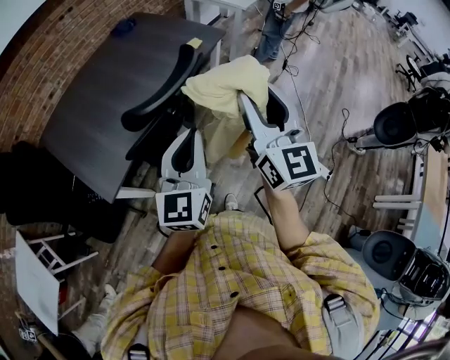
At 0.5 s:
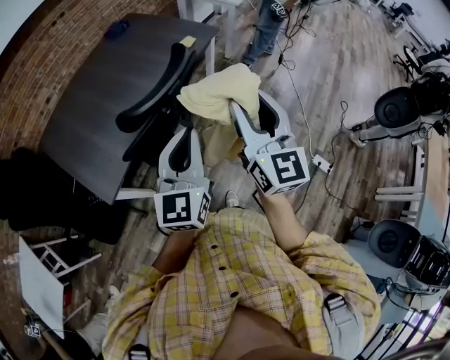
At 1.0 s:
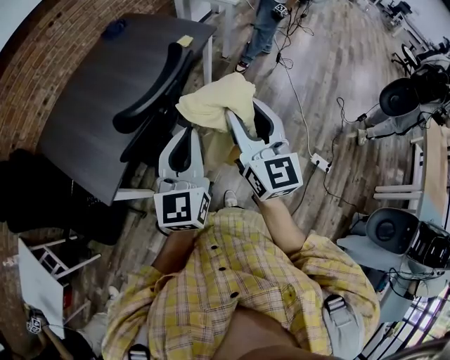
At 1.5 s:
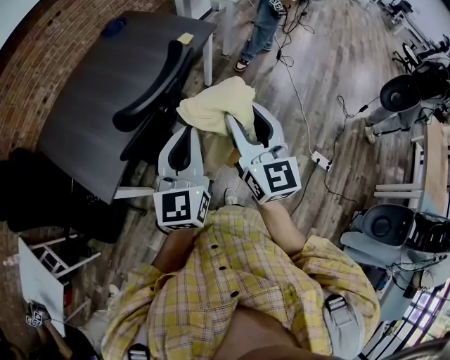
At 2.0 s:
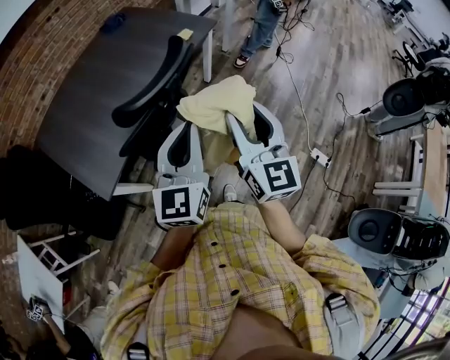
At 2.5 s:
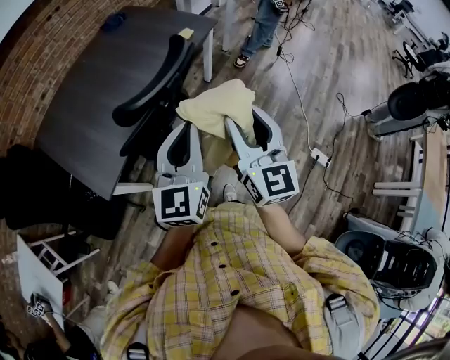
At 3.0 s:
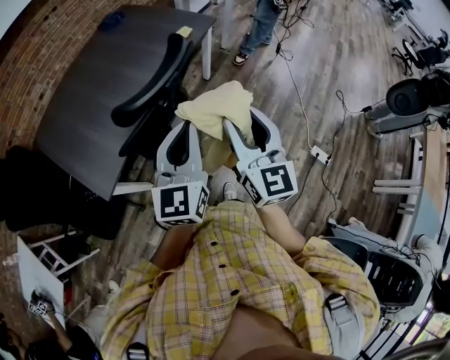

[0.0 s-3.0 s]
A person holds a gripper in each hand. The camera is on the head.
0.0 to 1.5 s: The right gripper is displaced downward by about 5 cm.
1.5 to 3.0 s: There are only small adjustments of the grippers.

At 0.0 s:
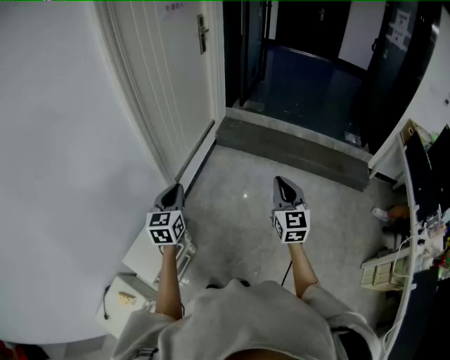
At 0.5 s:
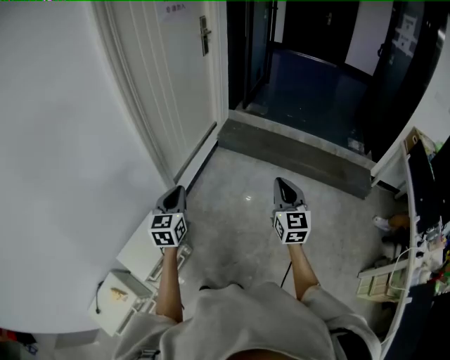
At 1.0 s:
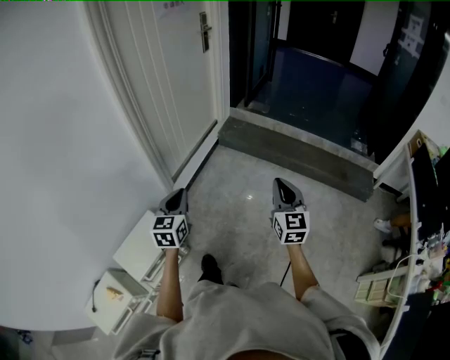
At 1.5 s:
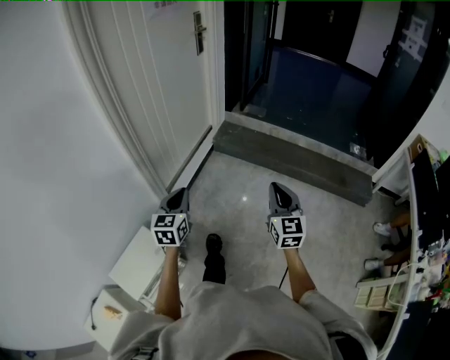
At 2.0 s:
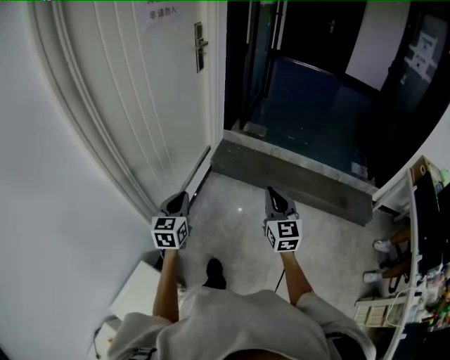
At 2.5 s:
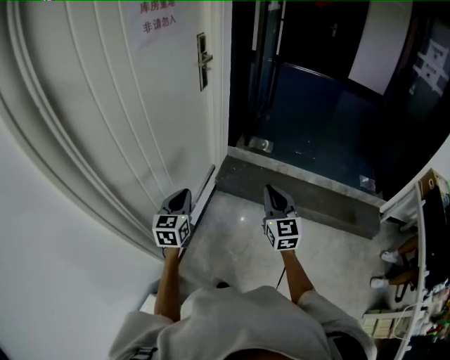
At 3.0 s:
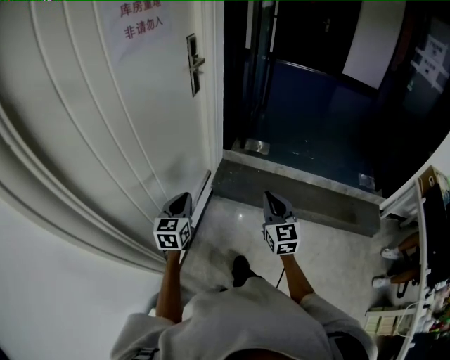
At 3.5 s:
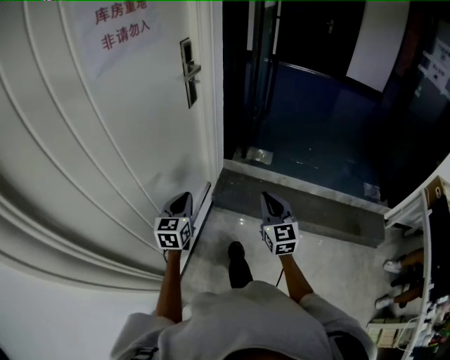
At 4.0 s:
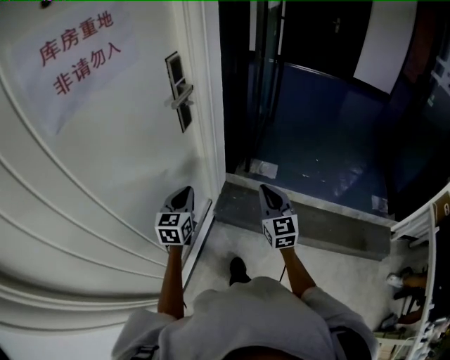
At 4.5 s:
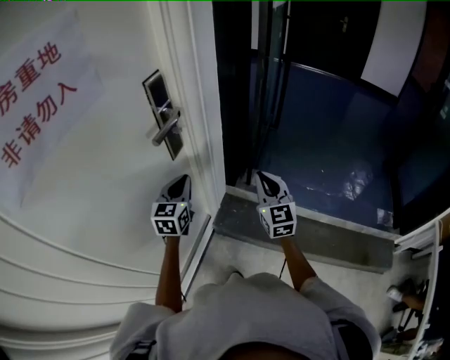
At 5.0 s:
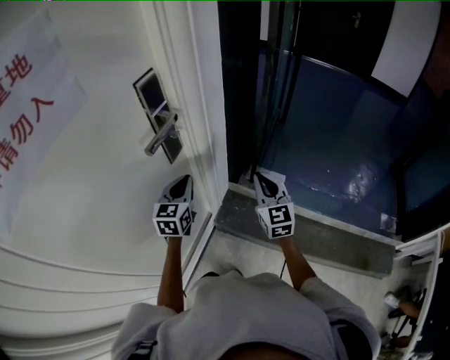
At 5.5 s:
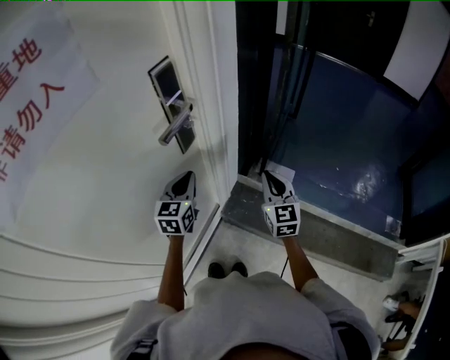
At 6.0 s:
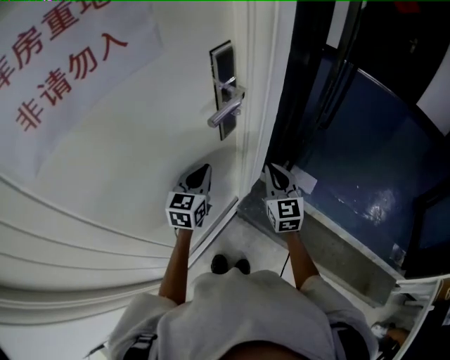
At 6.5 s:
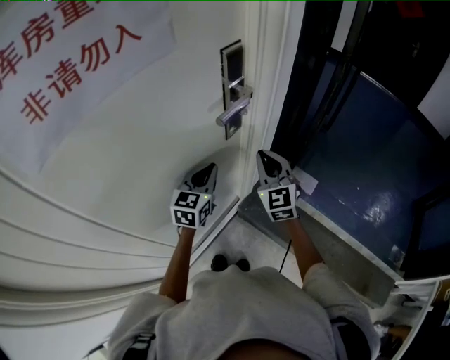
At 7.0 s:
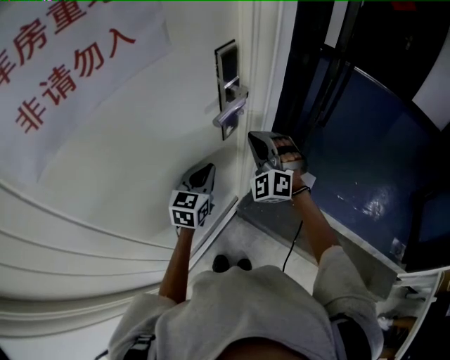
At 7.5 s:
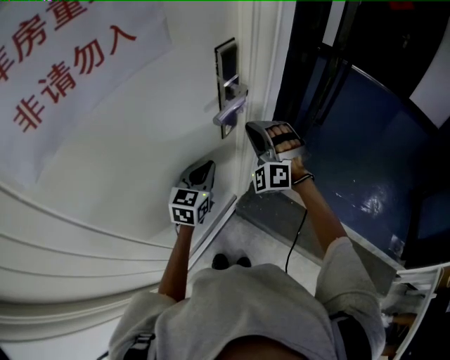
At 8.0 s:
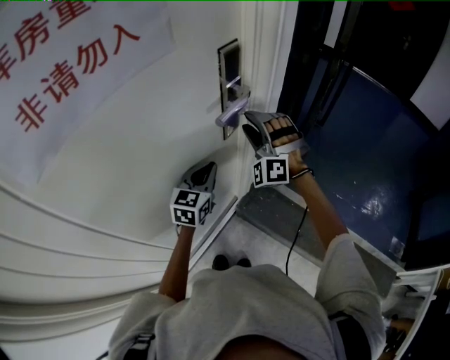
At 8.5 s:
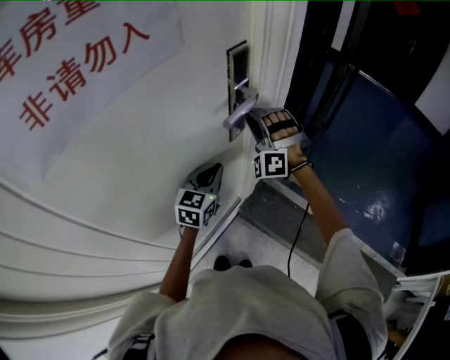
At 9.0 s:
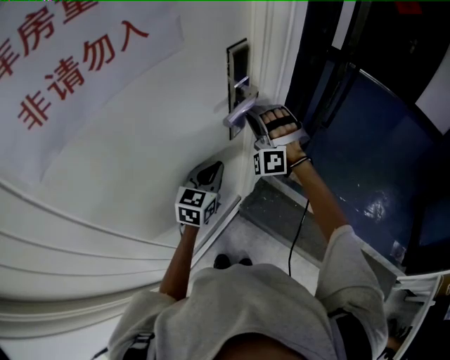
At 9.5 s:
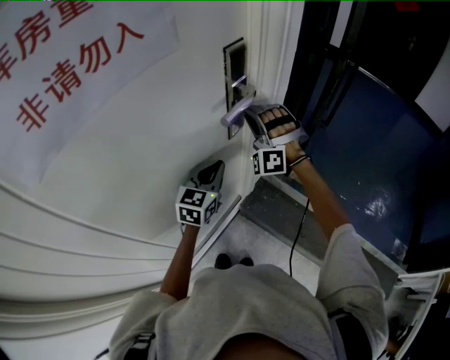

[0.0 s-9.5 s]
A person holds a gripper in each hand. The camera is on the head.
0.0 to 2.0 s: The two grippers go about 35 cm forward.
2.0 to 4.0 s: Both grippers are carried forward, roughly 60 cm.
4.0 to 5.5 s: The two grippers go about 20 cm forward.
5.5 to 7.5 s: The left gripper goes about 5 cm to the left; the right gripper is displaced to the left, forward and upward by roughly 20 cm, and rotates around the line of its fingers by about 80 degrees, counterclockwise from behind.
7.5 to 9.5 s: The right gripper changes place by roughly 5 cm, and opens, then closes once more.

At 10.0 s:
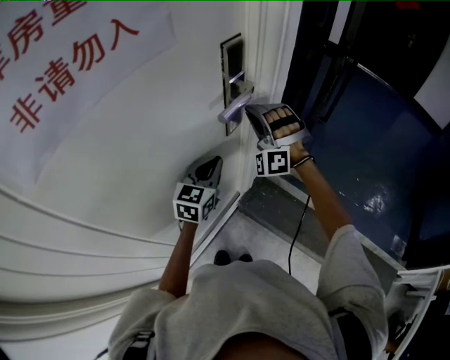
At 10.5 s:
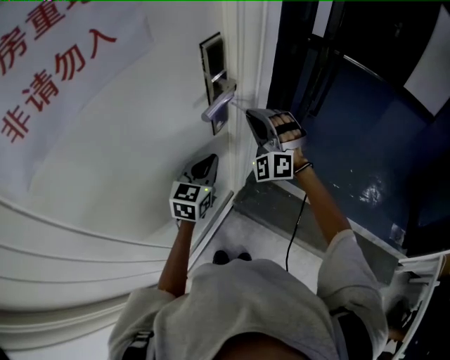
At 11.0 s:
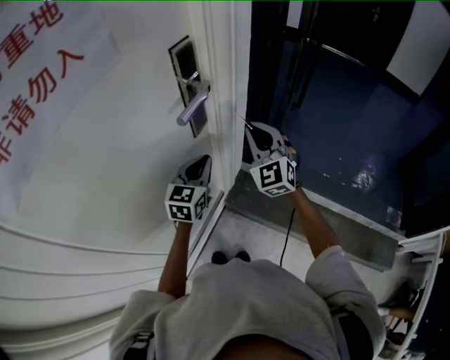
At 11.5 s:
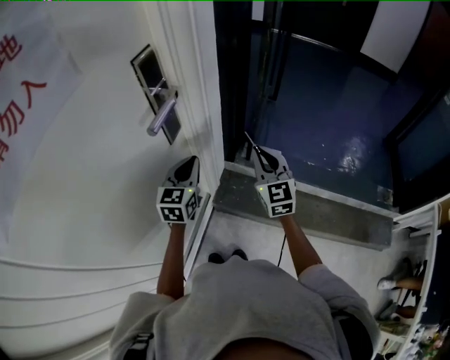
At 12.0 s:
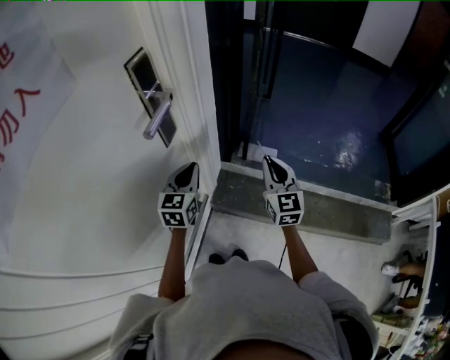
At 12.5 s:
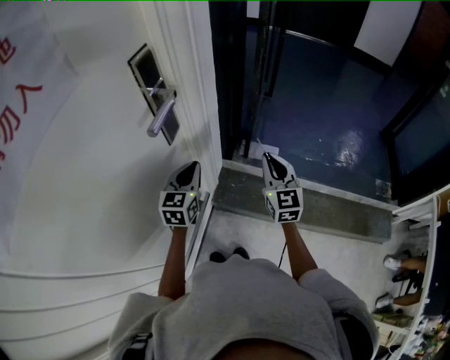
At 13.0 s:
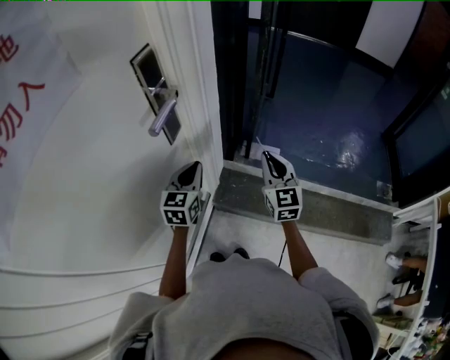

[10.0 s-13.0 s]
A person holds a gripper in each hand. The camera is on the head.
10.0 to 11.5 s: The left gripper moves to the right, approximately 10 cm. Meanwhile the right gripper shifts approximately 25 cm to the right and backward, and twists some 80 degrees clockwise, seen from behind.
11.5 to 13.0 s: The grippers make only small movements.

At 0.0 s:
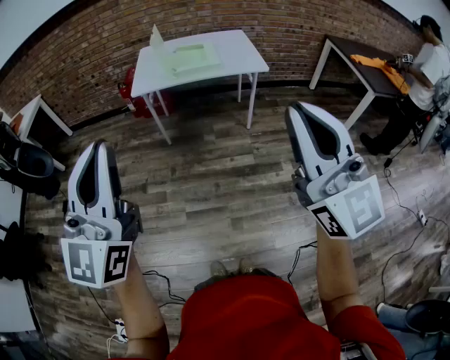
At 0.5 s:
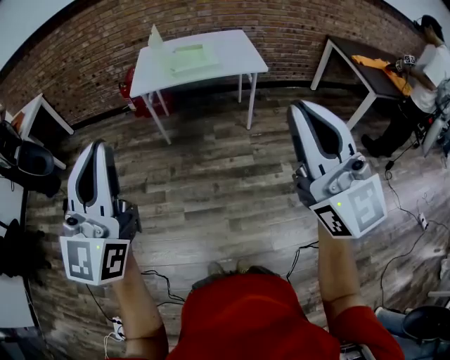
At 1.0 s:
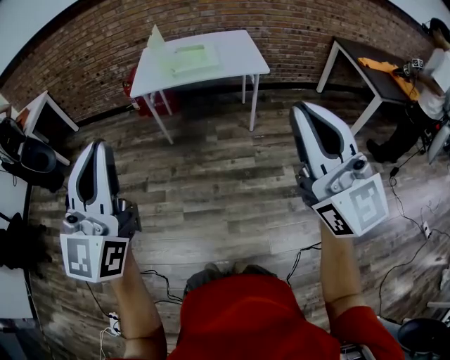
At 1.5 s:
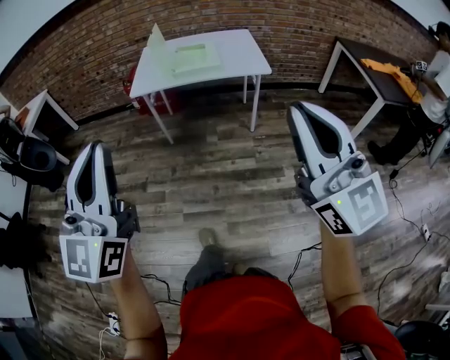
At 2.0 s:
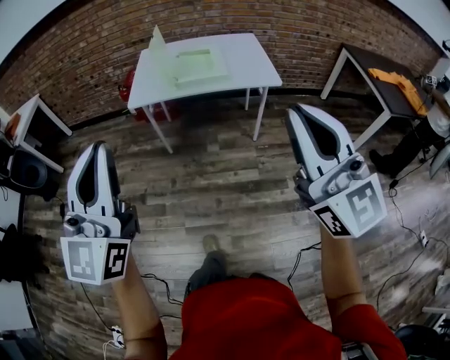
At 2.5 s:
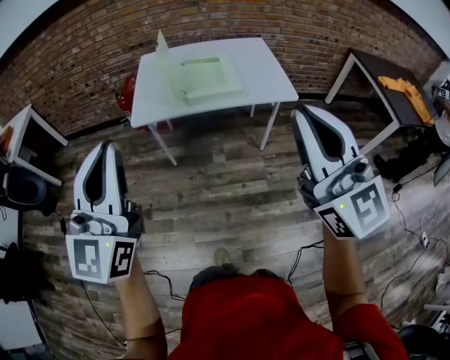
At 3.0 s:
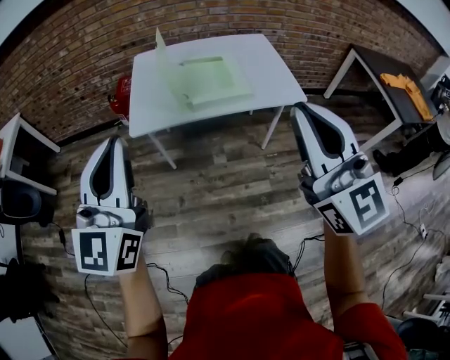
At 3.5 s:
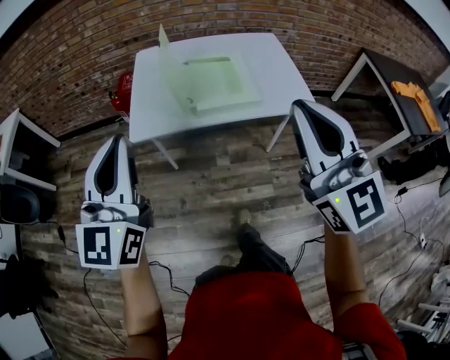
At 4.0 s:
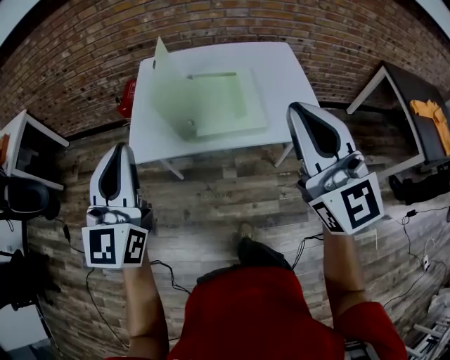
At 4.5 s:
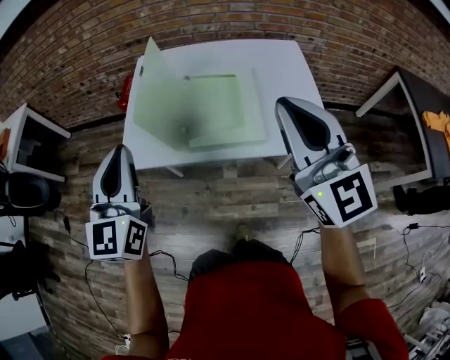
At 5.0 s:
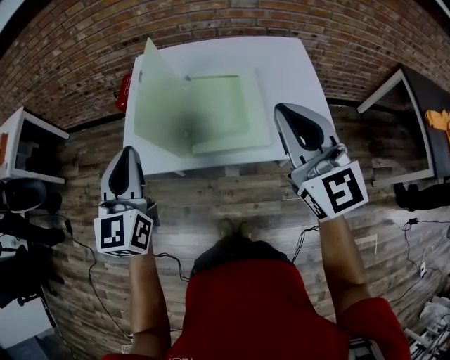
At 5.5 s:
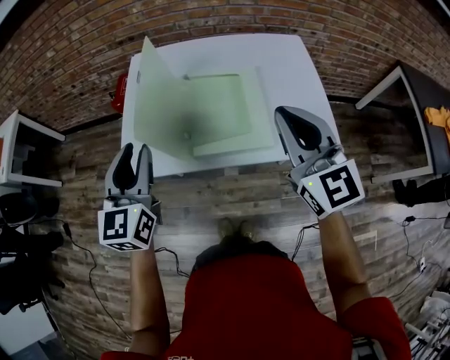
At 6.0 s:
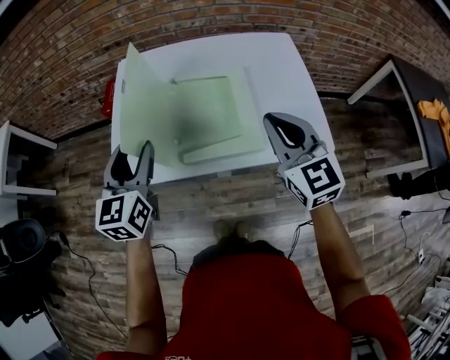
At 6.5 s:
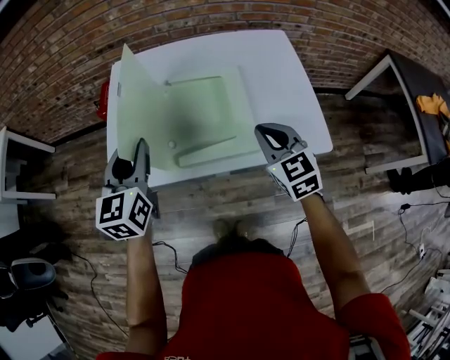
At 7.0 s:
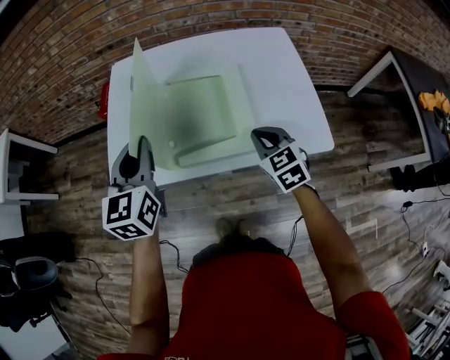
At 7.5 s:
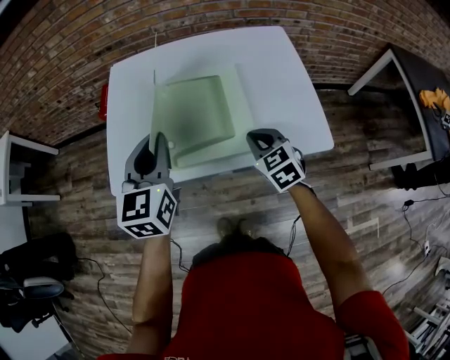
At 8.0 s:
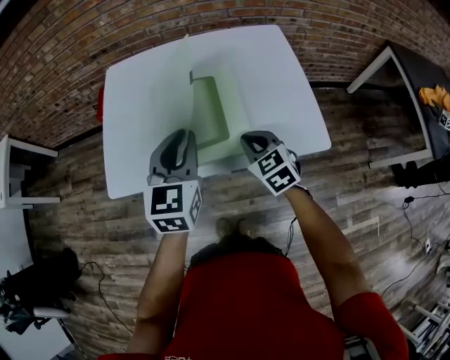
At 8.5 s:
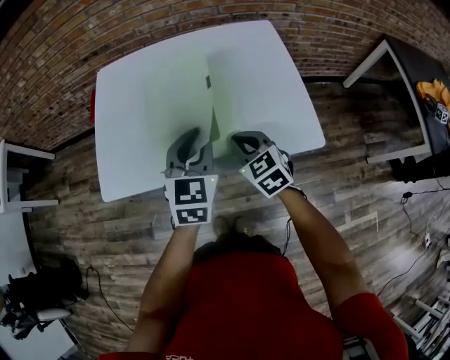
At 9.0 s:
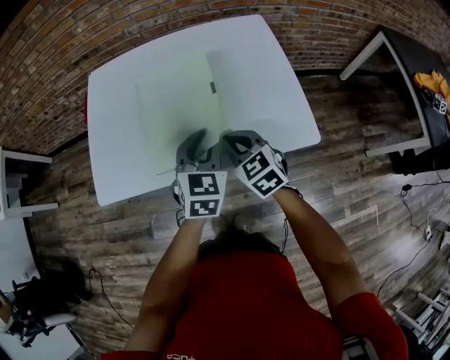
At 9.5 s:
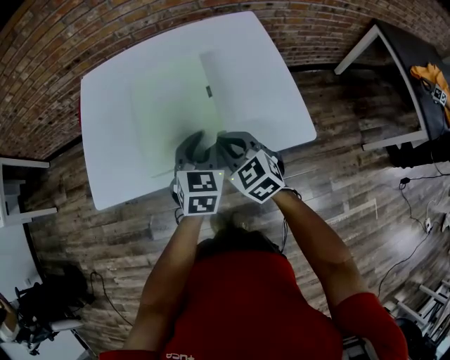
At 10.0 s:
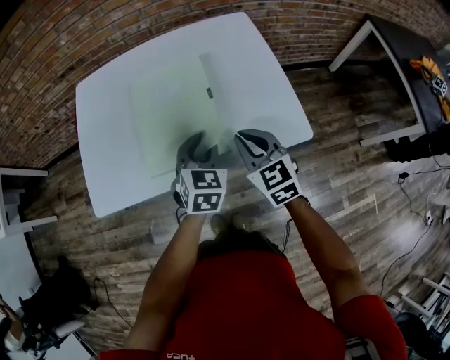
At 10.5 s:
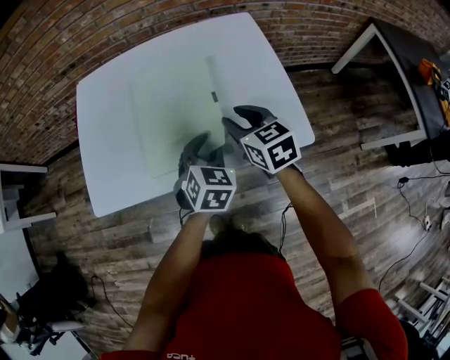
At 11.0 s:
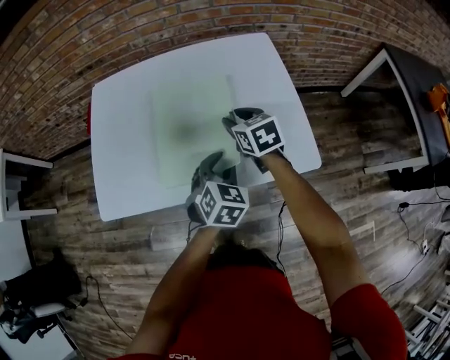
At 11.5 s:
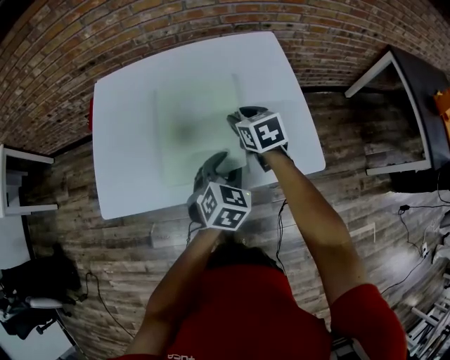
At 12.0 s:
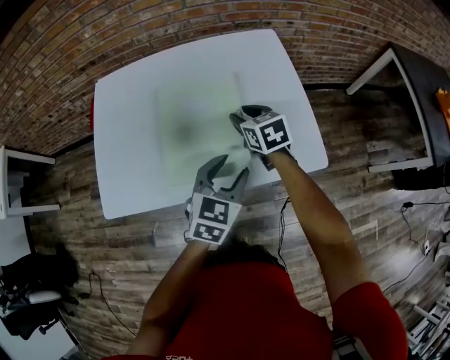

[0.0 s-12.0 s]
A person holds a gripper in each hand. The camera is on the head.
0.0 to 2.0 s: The two grippers go approximately 15 cm forward.
2.0 to 4.0 s: The two grippers travel together, forward, approximately 50 cm.
4.0 to 6.0 s: The two grippers go approximately 25 cm forward and downward. The right gripper changes its angle by about 20 degrees; the left gripper turns by some 20 degrees, and opens.
6.0 to 8.0 s: The left gripper is displaced to the right by about 15 cm, and closes; the right gripper moves downward, approximately 20 cm, and rotates some 30 degrees.
8.0 to 10.0 s: The left gripper shifts some 20 cm downward and to the right, and turns by some 20 degrees, while the right gripper goes about 5 cm to the right.
10.0 to 12.0 s: The right gripper heads forward, covering about 15 cm, swivels roughly 20 degrees, and opens its fingers, while the left gripper opens.
